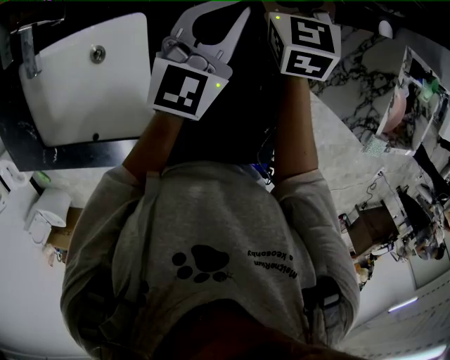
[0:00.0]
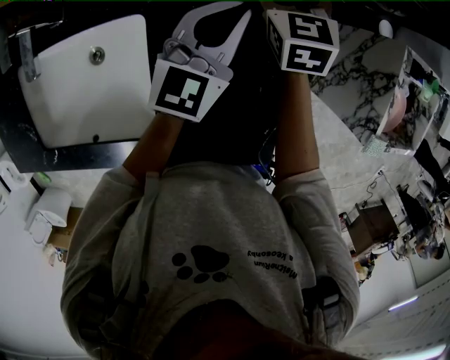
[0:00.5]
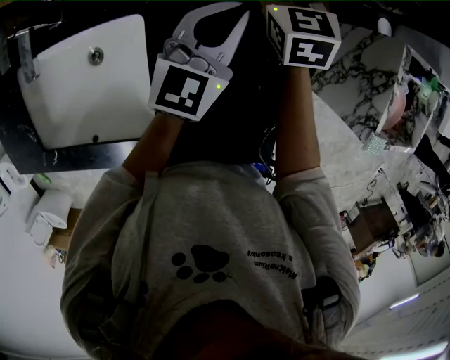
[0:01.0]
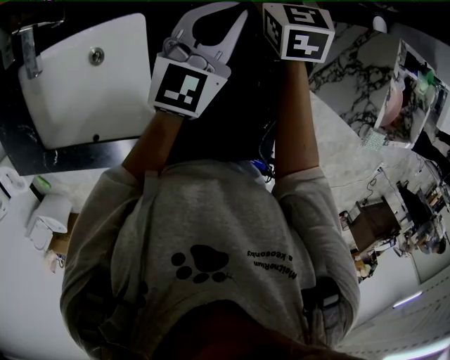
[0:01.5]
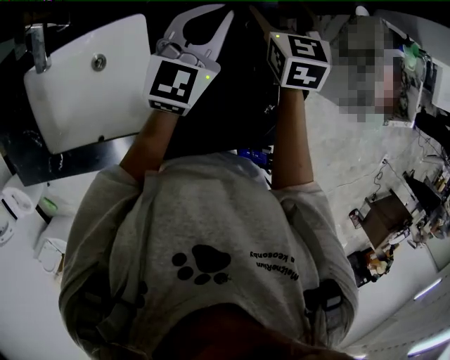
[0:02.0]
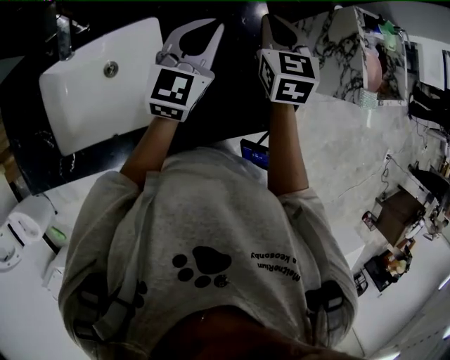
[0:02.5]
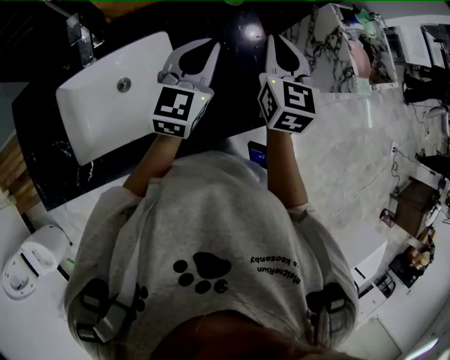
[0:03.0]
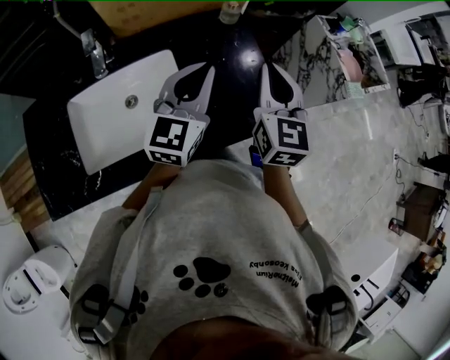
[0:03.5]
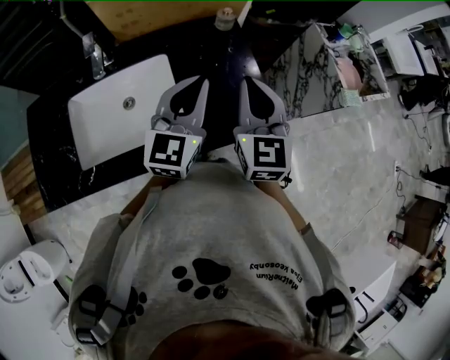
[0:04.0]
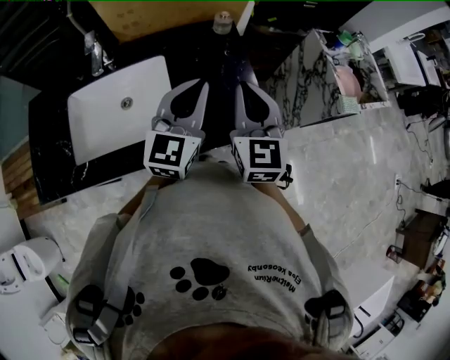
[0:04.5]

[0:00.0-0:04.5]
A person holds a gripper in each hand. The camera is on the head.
0:00.0 to 0:02.0: The right gripper is displaced backward and to the right by roughly 10 cm.
0:02.0 to 0:04.5: Both grippers move backward and upward, roughly 30 cm. The right gripper swivels about 30 degrees, and closes its fingers.

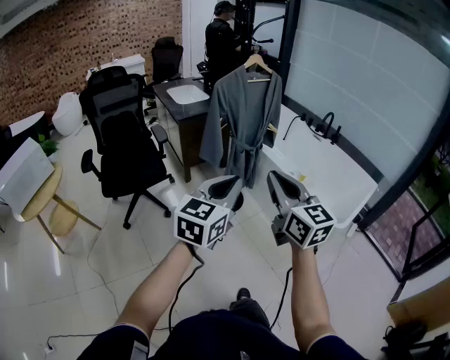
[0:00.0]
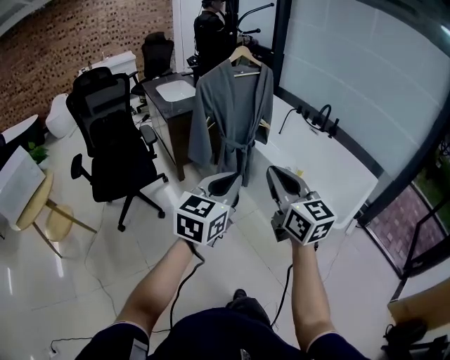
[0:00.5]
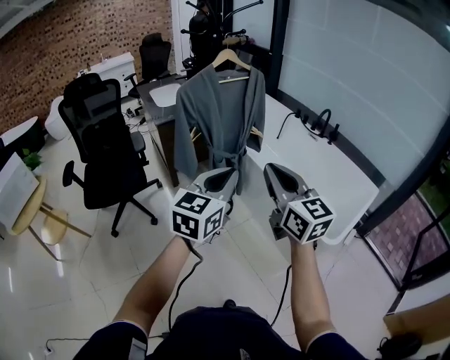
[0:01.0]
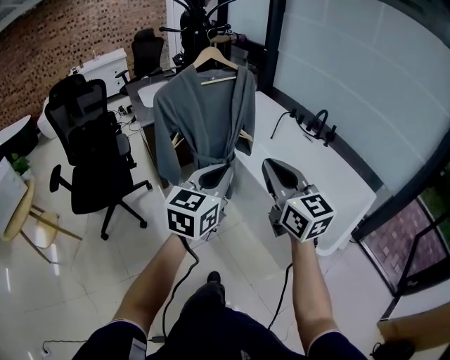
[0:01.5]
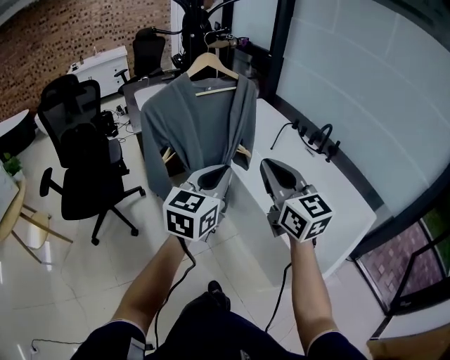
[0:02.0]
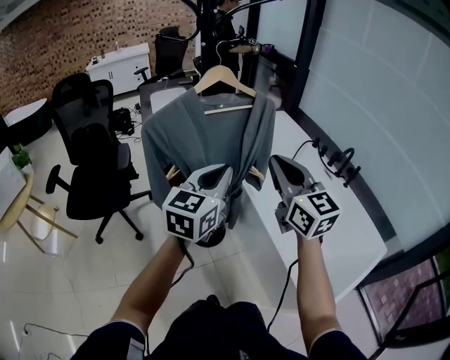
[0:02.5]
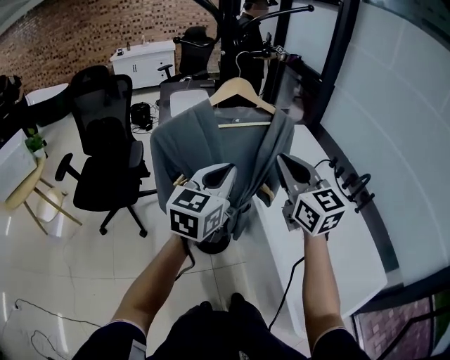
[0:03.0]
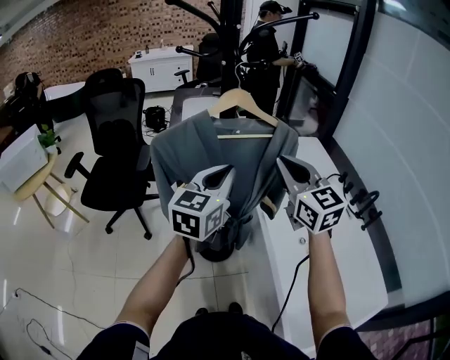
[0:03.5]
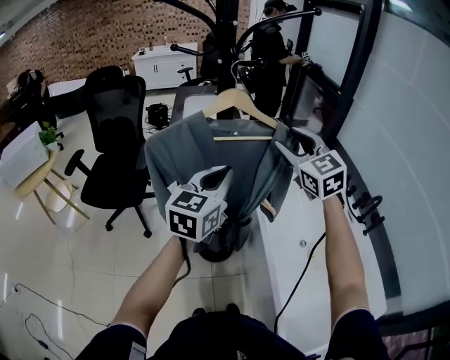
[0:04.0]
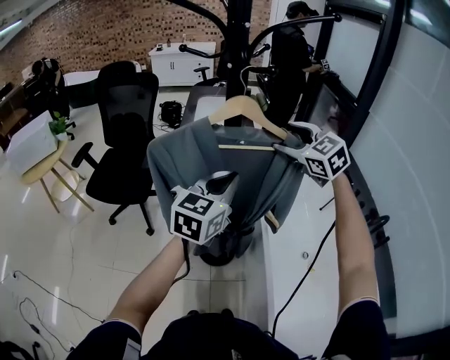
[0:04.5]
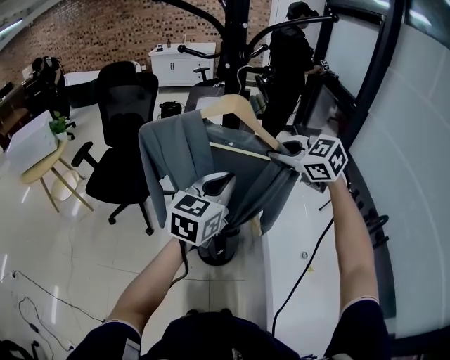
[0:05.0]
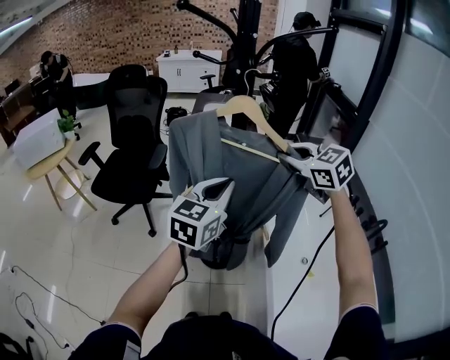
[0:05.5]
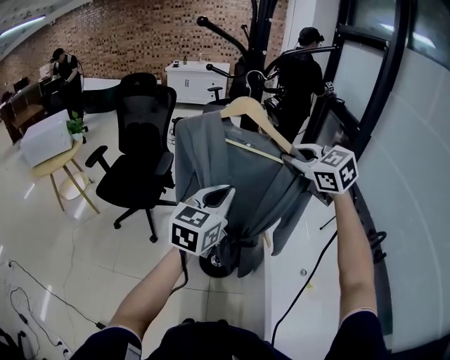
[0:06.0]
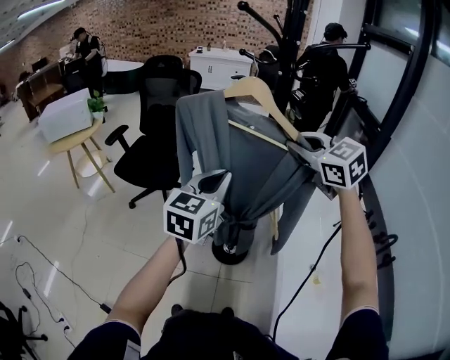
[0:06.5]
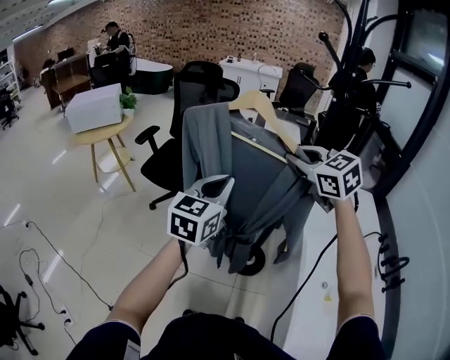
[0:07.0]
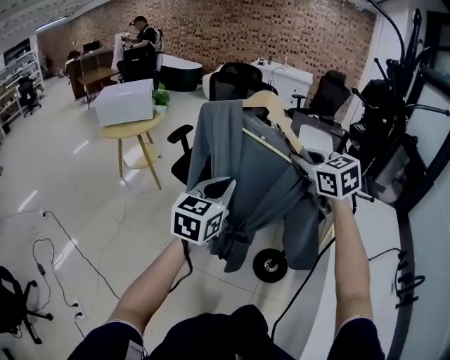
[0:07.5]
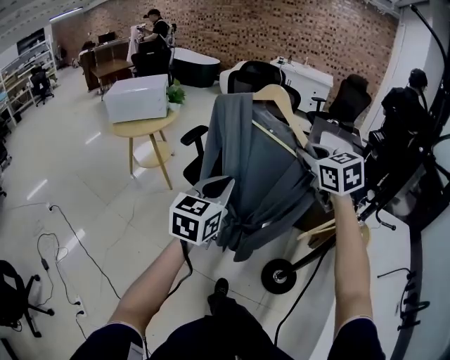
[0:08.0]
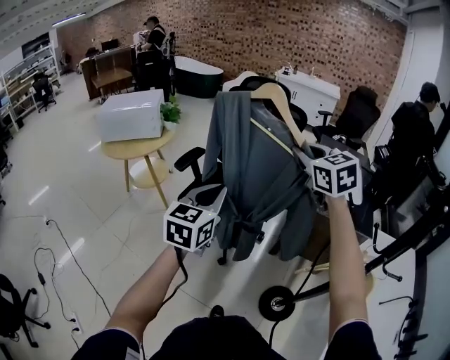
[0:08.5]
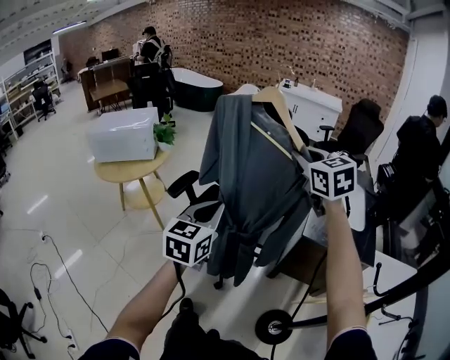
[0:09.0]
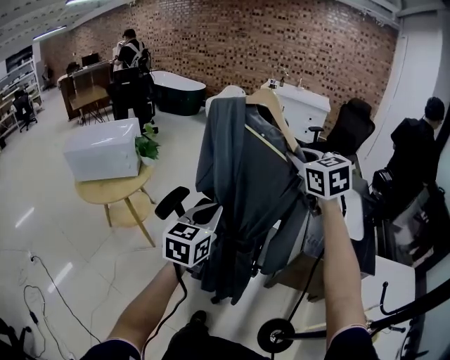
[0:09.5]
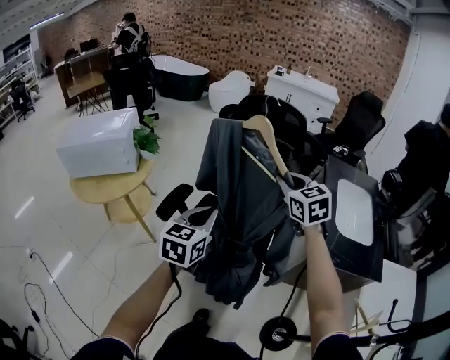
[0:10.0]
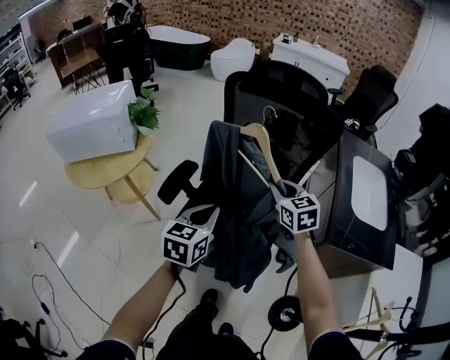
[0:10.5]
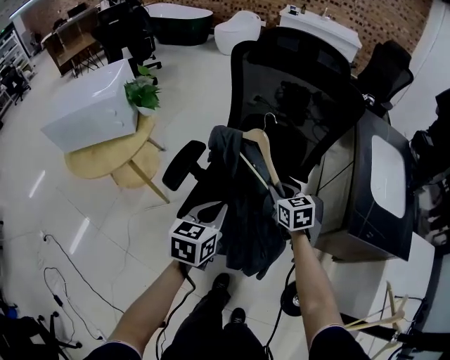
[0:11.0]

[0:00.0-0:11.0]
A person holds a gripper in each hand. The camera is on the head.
0:00.0 to 0:02.0: The grippers both shift forward and to the right by roughly 35 cm.
0:02.0 to 0:03.5: The grippers both shift forward by about 20 cm. The right gripper turns by about 20 degrees, while the left gripper turns by some 20 degrees.
0:03.5 to 0:05.5: The right gripper travels forward by roughly 10 cm, turns by some 30 degrees, and opens, then closes once more.
0:05.5 to 0:07.5: The grippers both shift to the left by about 35 cm. The left gripper swivels some 20 degrees.
0:07.5 to 0:09.0: Both grippers move forward, roughly 40 cm.
0:09.0 to 0:11.0: The right gripper travels downward and forward by some 40 cm, and changes its angle by some 30 degrees, while the left gripper heads downward, forward and to the left, covering approximately 30 cm, and swivels approximately 20 degrees.

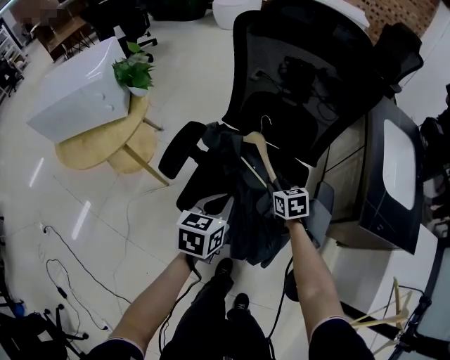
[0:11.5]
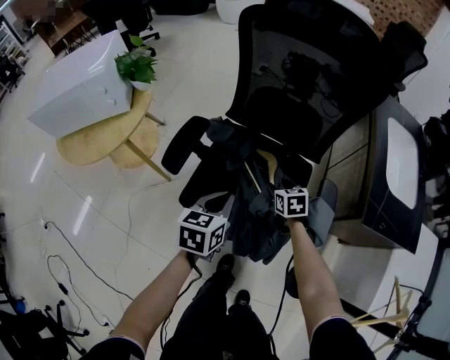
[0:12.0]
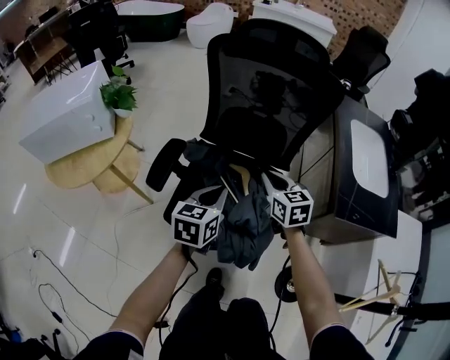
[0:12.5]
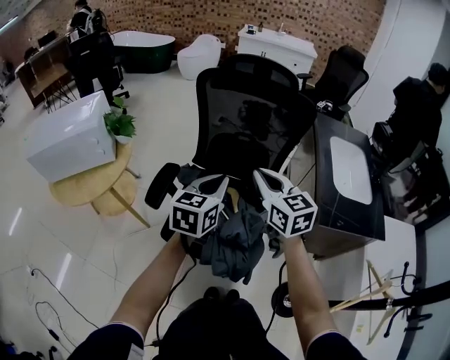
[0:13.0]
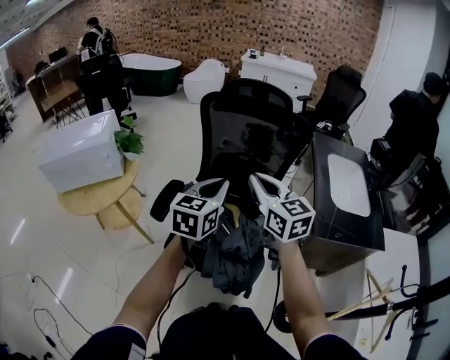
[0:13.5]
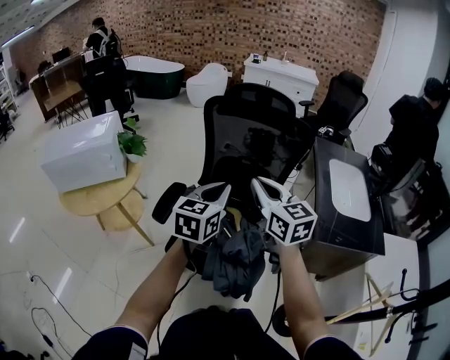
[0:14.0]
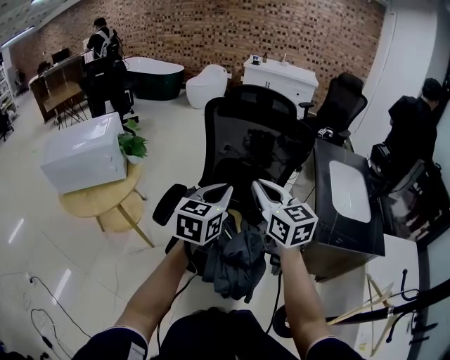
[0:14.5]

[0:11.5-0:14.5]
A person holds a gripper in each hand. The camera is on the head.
0:11.5 to 0:13.0: The right gripper shifts approximately 35 cm upward, tilts its fingers approximately 30 degrees upward, and opens, then closes once more. Meanwhile the left gripper goes approximately 20 cm upward, and turns by approximately 20 degrees.
0:13.0 to 0:14.5: Both grippers travel together upward, some 5 cm.

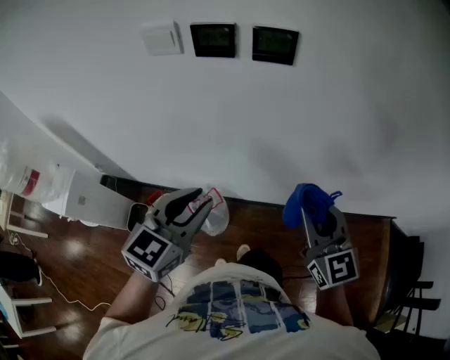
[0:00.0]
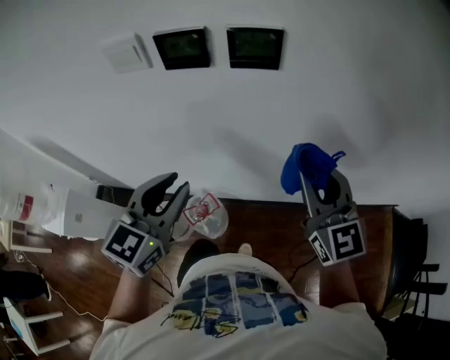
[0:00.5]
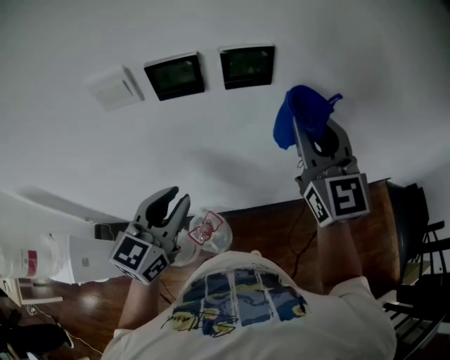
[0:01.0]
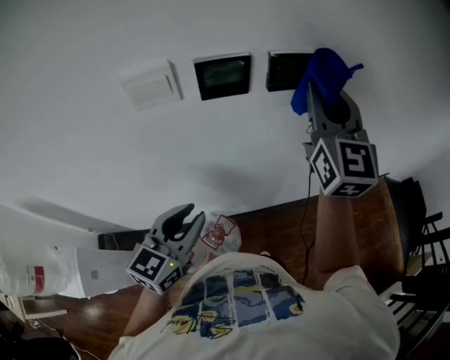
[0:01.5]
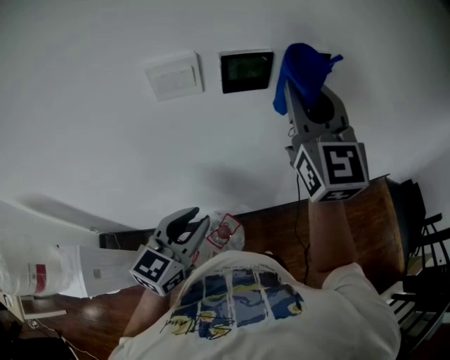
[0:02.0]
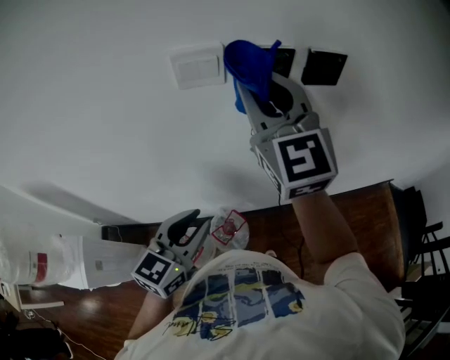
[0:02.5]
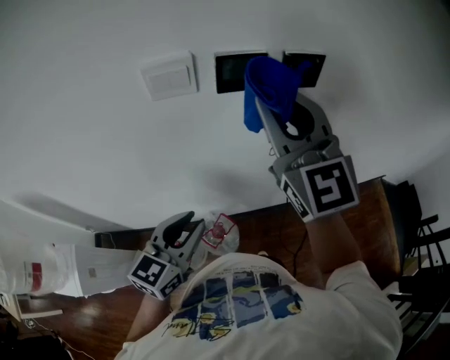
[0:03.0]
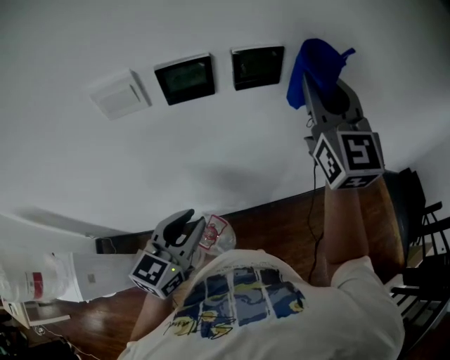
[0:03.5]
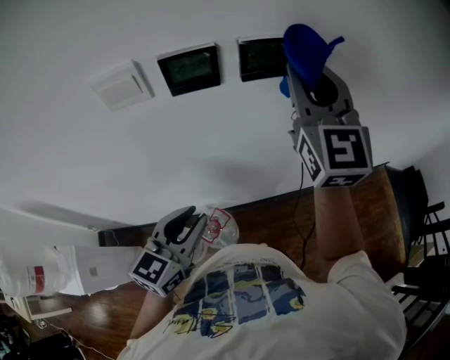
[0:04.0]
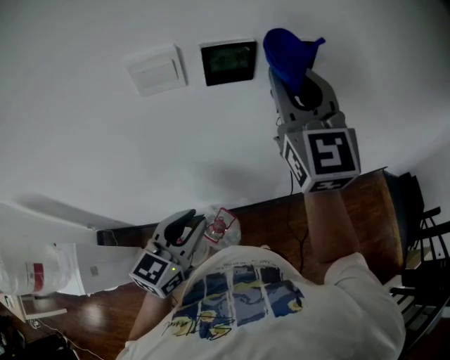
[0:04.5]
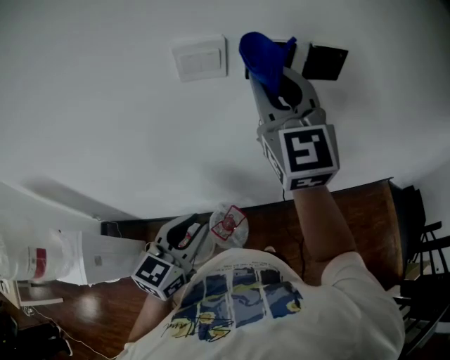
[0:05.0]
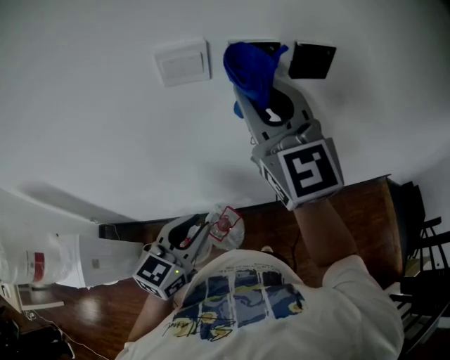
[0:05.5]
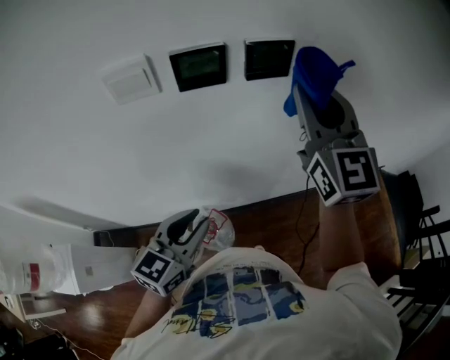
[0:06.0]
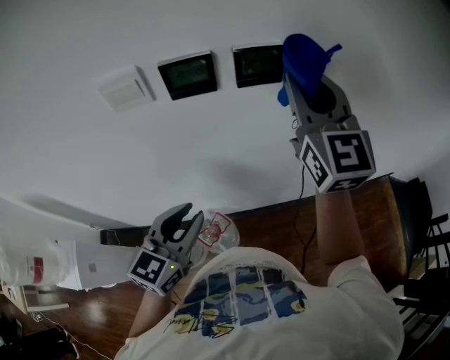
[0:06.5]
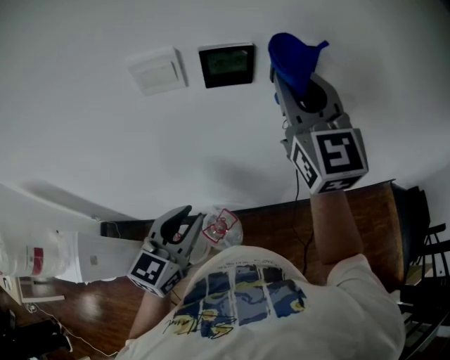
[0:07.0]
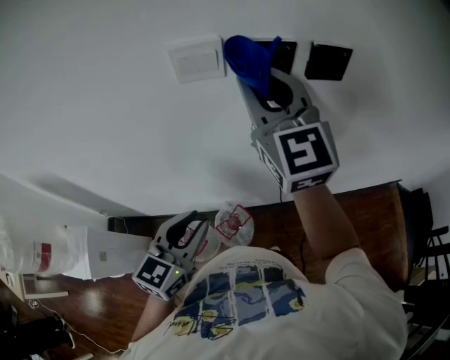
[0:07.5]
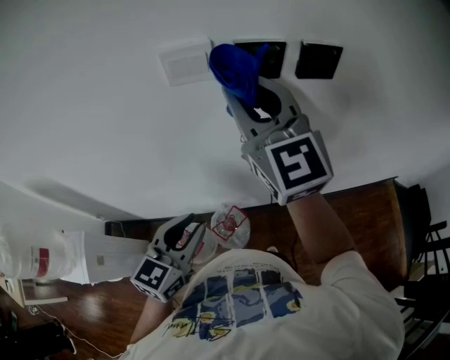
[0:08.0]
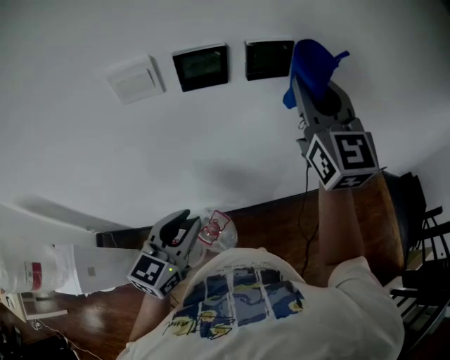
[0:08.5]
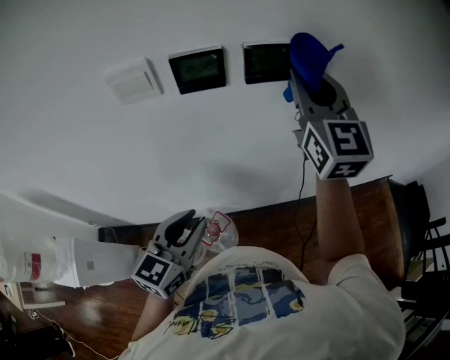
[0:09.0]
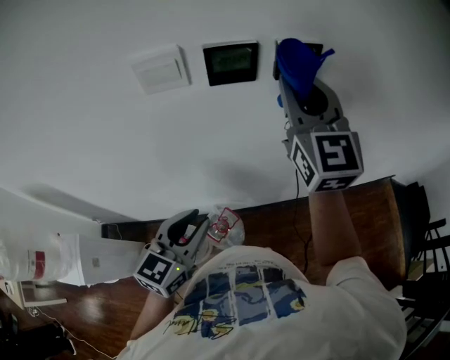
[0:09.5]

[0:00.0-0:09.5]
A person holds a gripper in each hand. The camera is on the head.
0:00.0 to 0:02.0: The right gripper heads to the left, upward and forward, covering approximately 35 cm, and swivels about 30 degrees. Meanwhile the left gripper is displaced to the left by some 15 cm.
0:02.0 to 0:04.0: The right gripper swings left and right, approximately 25 cm each way, with 2 reversals. The left gripper goes about 5 cm to the right.
0:04.0 to 0:05.5: The left gripper shifts some 10 cm to the left and backward. The right gripper moves to the left and backward, roughly 20 cm.
0:05.5 to 0:07.5: The right gripper goes to the right and returns, roughly 20 cm each way. Meanwhile the left gripper reaches roughly 10 cm to the right, then returns.
0:07.5 to 0:09.5: The right gripper moves to the right, roughly 15 cm, while the left gripper travels to the right by roughly 5 cm.
